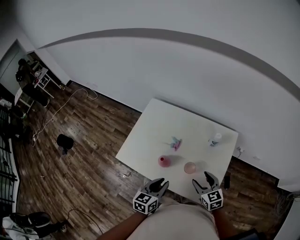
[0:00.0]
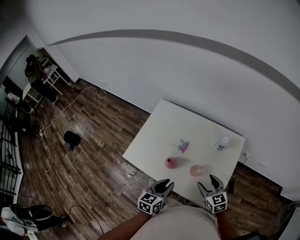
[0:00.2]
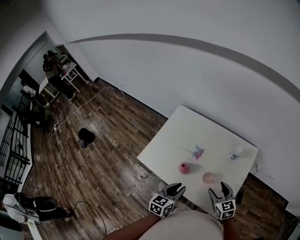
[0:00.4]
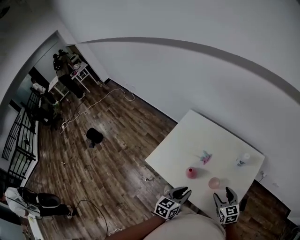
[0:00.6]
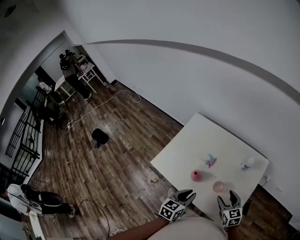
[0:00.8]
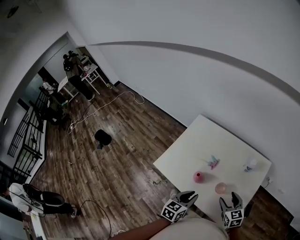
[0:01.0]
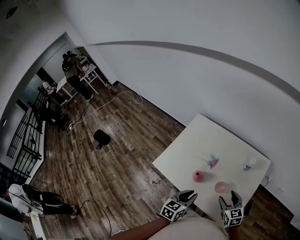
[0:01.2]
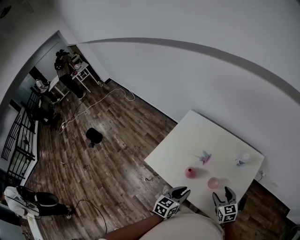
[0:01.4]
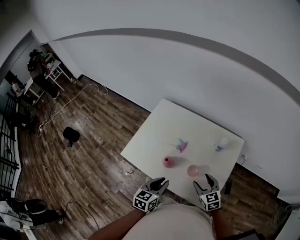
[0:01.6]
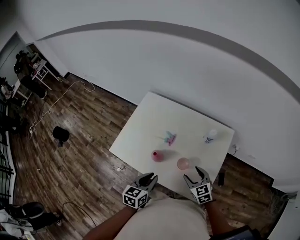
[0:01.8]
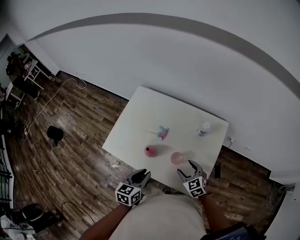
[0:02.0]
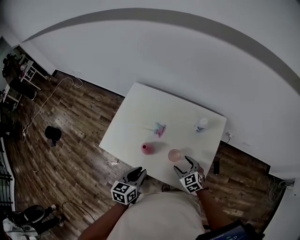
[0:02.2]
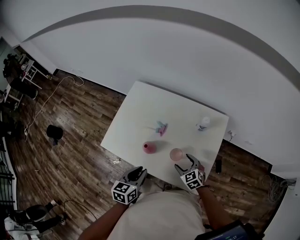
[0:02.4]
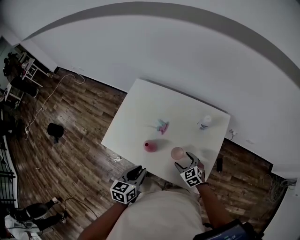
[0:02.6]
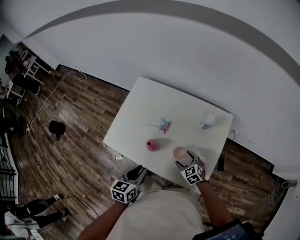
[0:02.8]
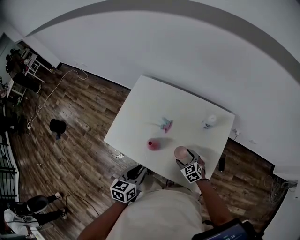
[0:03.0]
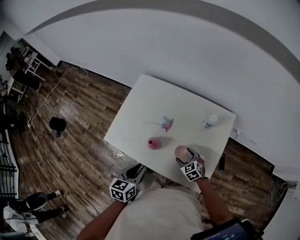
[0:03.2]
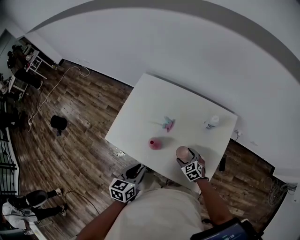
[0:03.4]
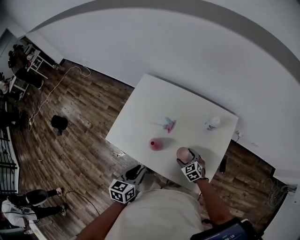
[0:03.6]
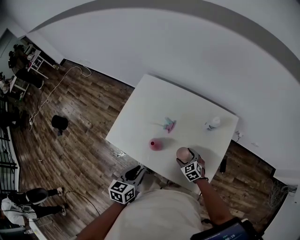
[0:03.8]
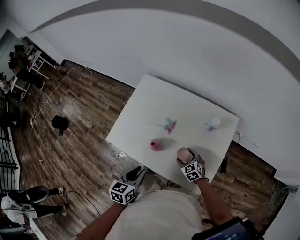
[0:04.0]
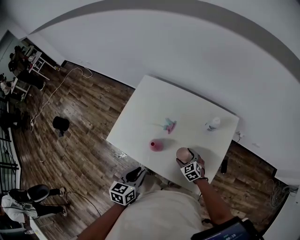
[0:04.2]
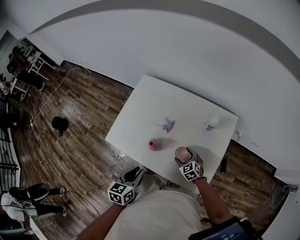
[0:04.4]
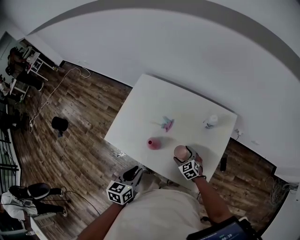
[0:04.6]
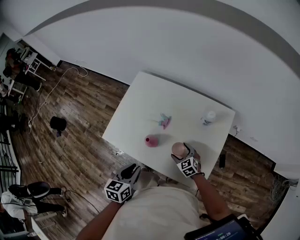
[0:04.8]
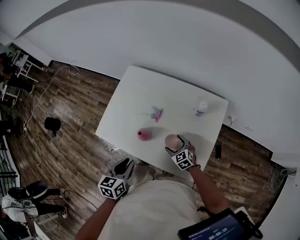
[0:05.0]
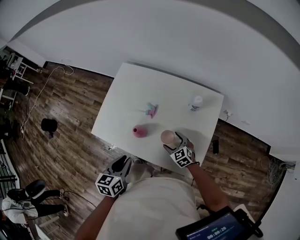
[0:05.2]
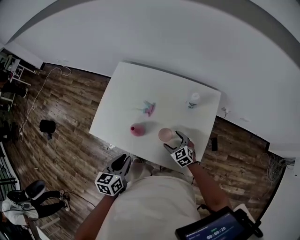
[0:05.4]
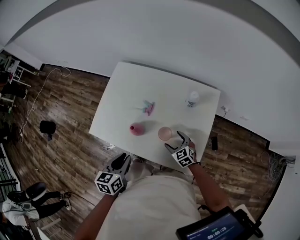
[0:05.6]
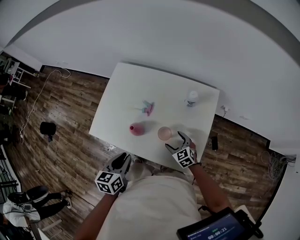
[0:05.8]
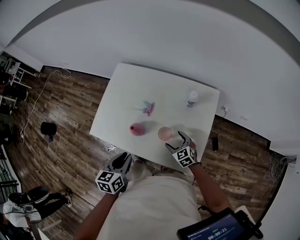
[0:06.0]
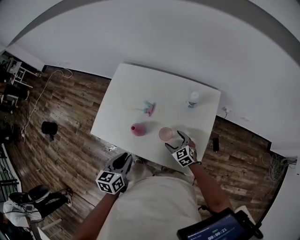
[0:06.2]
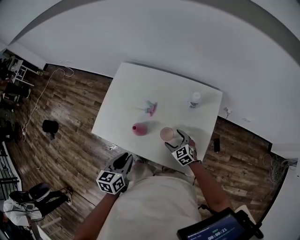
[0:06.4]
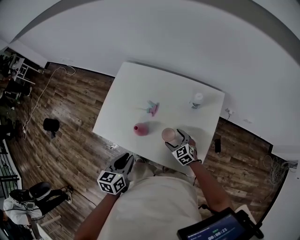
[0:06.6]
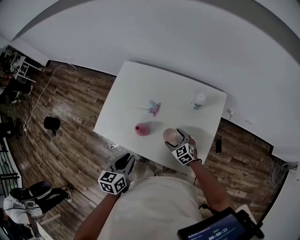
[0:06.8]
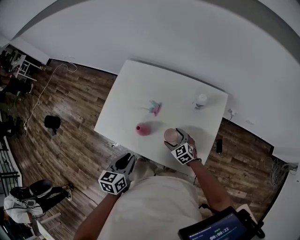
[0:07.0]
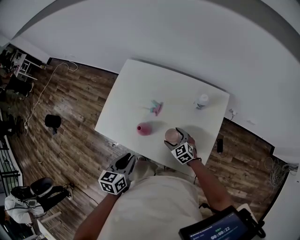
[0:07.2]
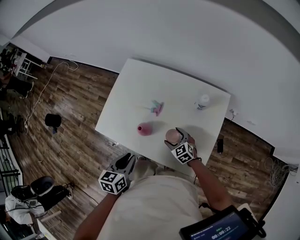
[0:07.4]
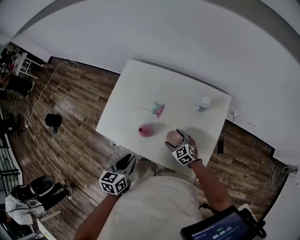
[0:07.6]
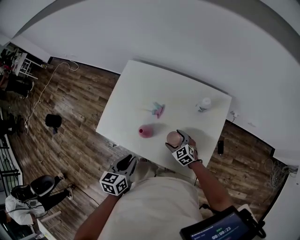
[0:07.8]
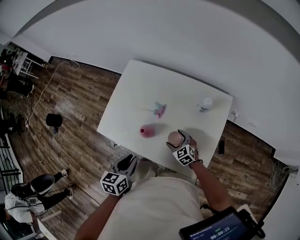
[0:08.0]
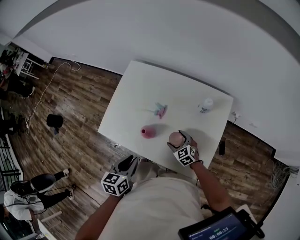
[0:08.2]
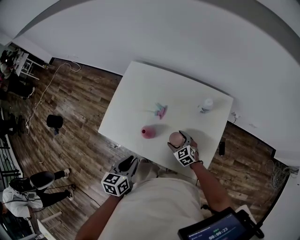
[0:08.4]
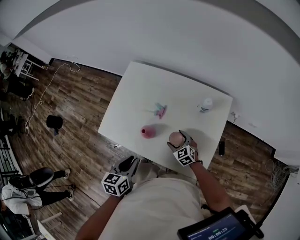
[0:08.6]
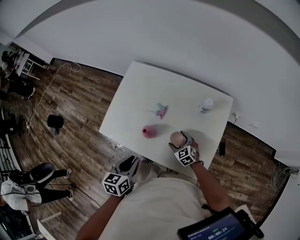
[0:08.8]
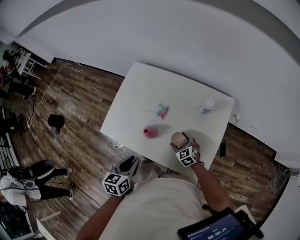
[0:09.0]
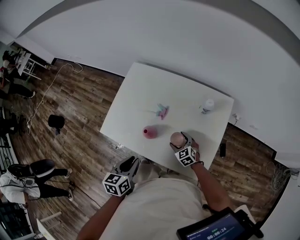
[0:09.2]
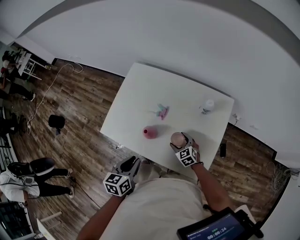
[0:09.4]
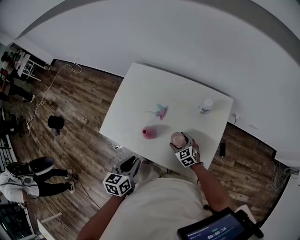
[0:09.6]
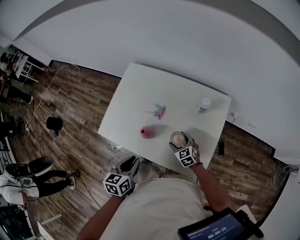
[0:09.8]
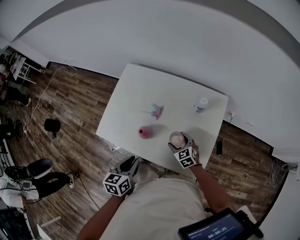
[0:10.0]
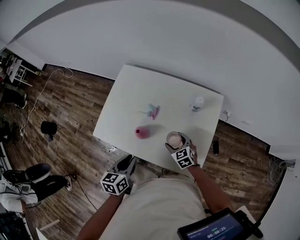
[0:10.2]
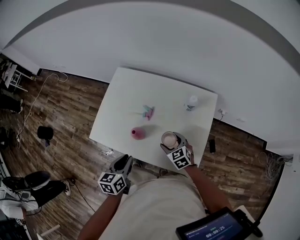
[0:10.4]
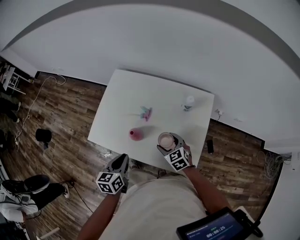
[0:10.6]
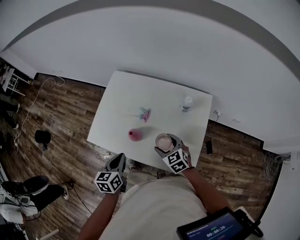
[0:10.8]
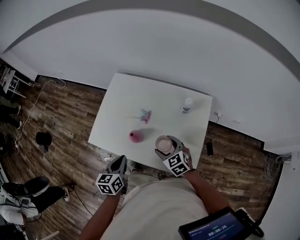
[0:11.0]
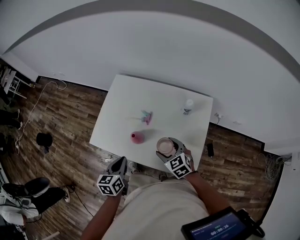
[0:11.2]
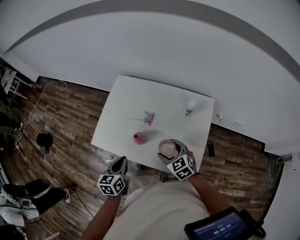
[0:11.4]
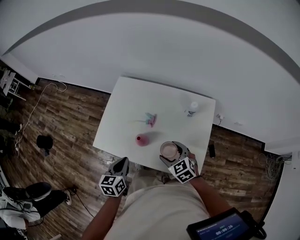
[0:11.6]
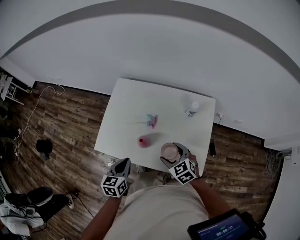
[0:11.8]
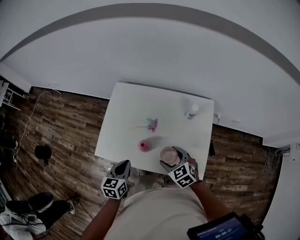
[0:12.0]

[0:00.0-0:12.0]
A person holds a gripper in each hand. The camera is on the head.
0:00.0 to 0:01.6: The grippers make only small movements.
0:01.6 to 0:03.0: The right gripper goes roughly 15 cm downward.
0:03.0 to 0:04.4: The grippers stay close to where they were, moving slightly.
0:04.4 to 0:06.0: The right gripper ends up about 5 cm from where it was.
0:06.0 to 0:07.6: The right gripper goes some 5 cm to the left.
0:07.6 to 0:09.0: The grippers move only a little.
0:09.0 to 0:10.4: The right gripper moves upward, about 10 cm.
0:10.4 to 0:12.0: The left gripper travels forward and to the left by some 10 cm, while the right gripper travels upward and to the left by some 10 cm.

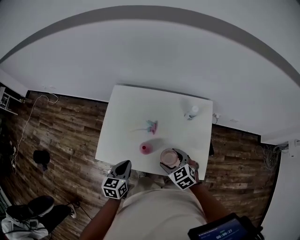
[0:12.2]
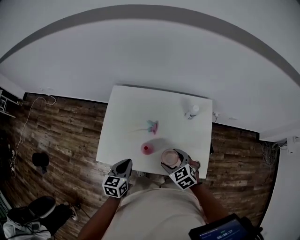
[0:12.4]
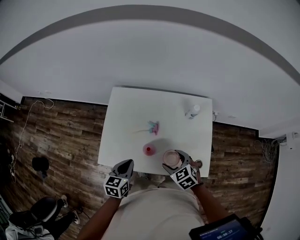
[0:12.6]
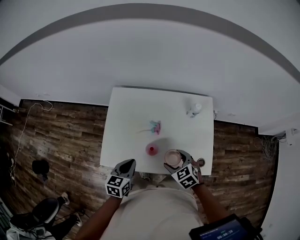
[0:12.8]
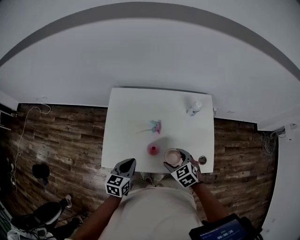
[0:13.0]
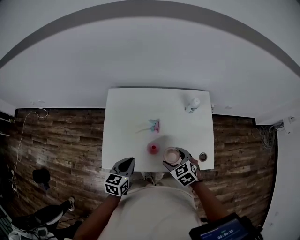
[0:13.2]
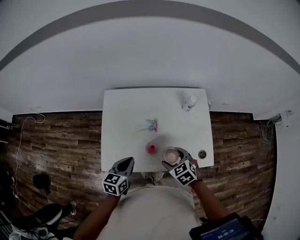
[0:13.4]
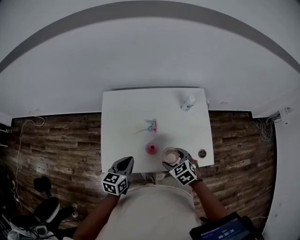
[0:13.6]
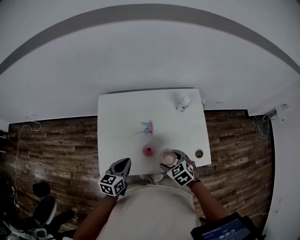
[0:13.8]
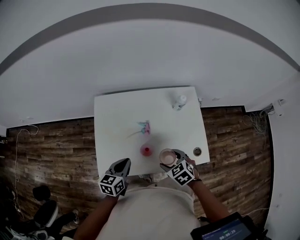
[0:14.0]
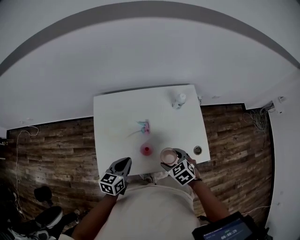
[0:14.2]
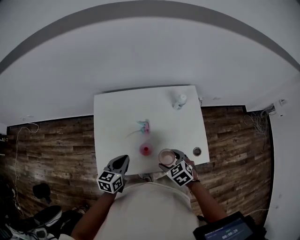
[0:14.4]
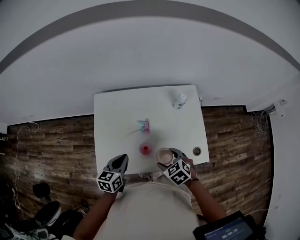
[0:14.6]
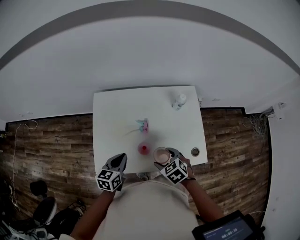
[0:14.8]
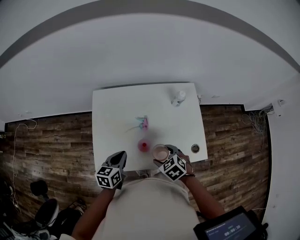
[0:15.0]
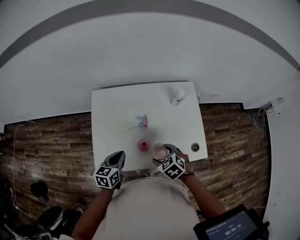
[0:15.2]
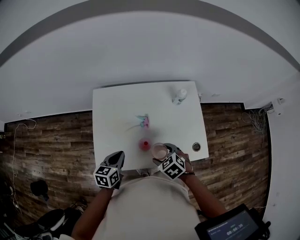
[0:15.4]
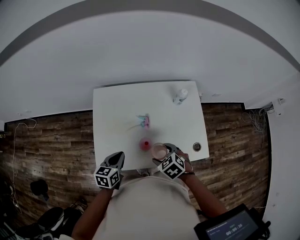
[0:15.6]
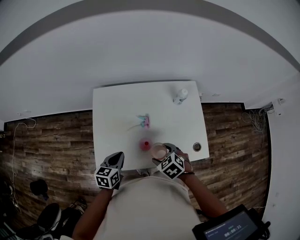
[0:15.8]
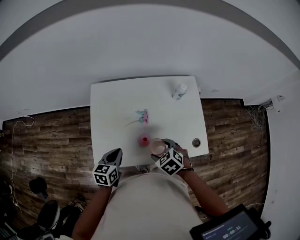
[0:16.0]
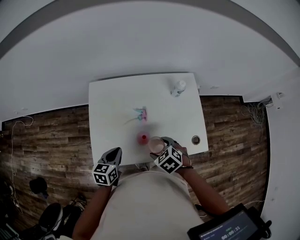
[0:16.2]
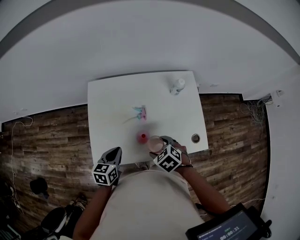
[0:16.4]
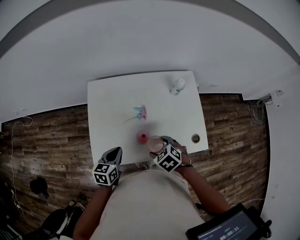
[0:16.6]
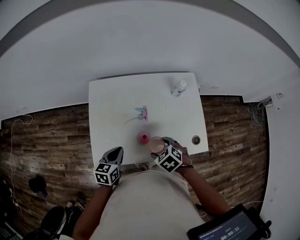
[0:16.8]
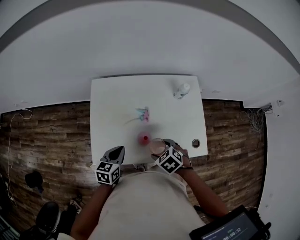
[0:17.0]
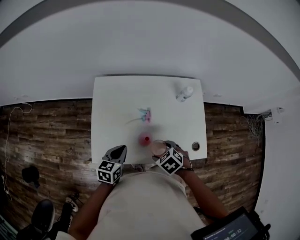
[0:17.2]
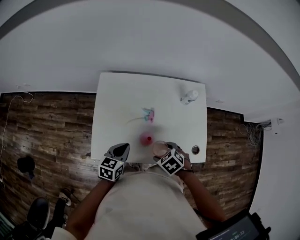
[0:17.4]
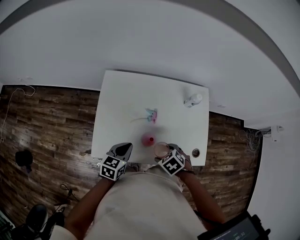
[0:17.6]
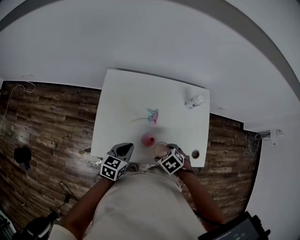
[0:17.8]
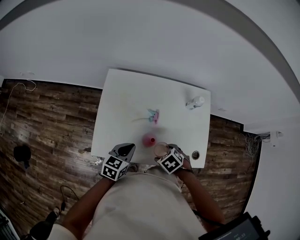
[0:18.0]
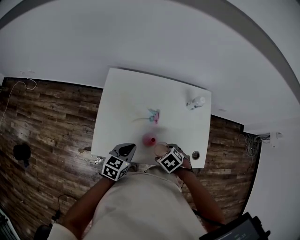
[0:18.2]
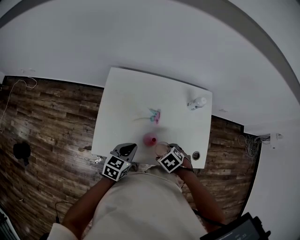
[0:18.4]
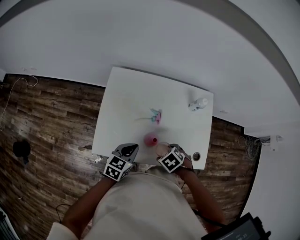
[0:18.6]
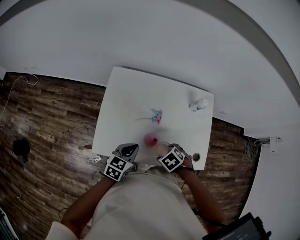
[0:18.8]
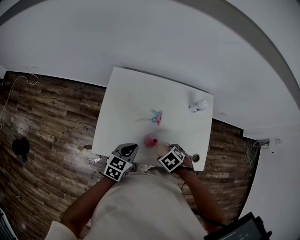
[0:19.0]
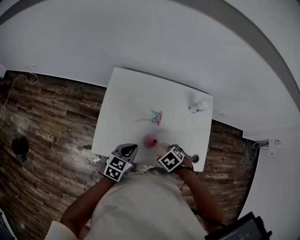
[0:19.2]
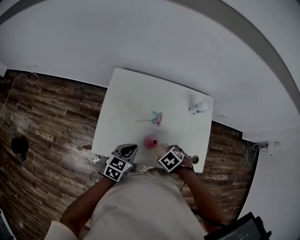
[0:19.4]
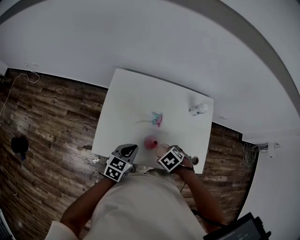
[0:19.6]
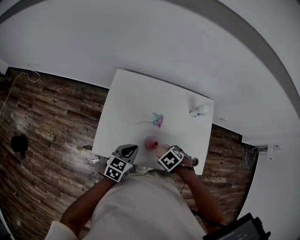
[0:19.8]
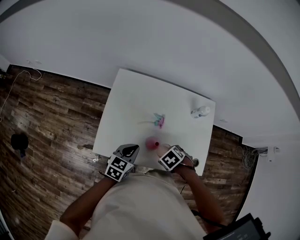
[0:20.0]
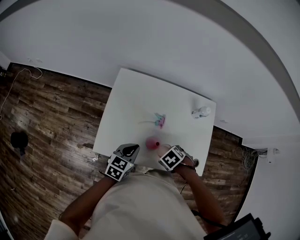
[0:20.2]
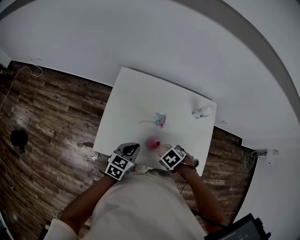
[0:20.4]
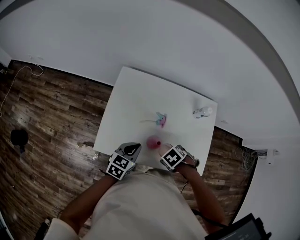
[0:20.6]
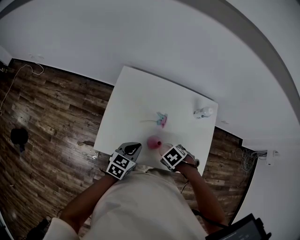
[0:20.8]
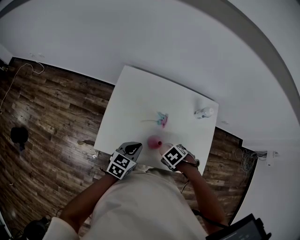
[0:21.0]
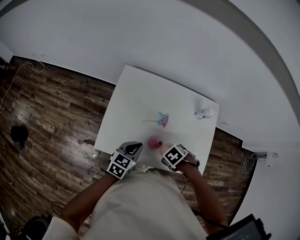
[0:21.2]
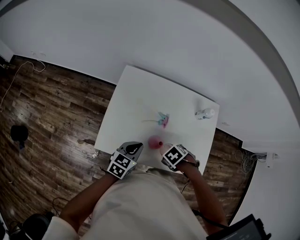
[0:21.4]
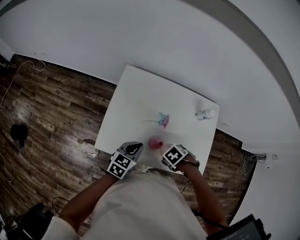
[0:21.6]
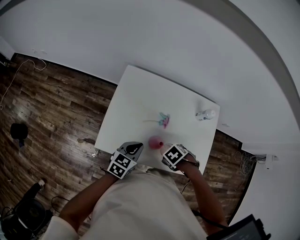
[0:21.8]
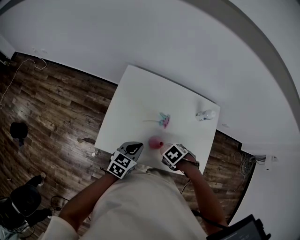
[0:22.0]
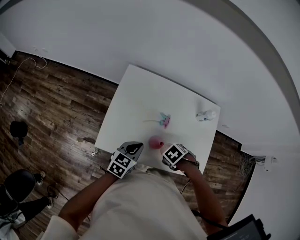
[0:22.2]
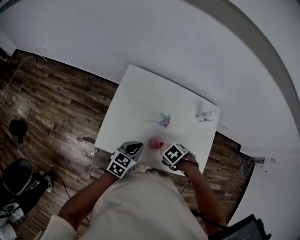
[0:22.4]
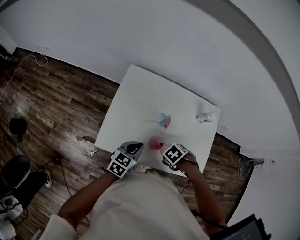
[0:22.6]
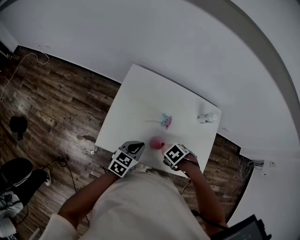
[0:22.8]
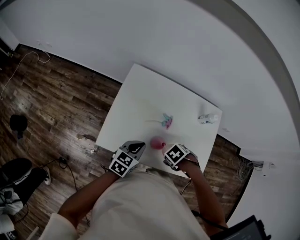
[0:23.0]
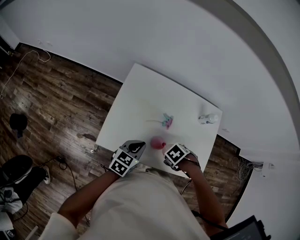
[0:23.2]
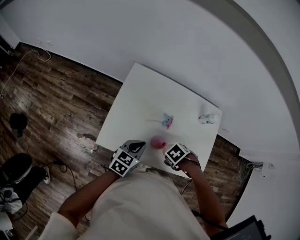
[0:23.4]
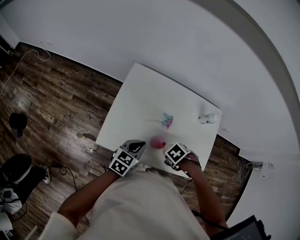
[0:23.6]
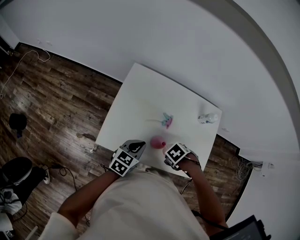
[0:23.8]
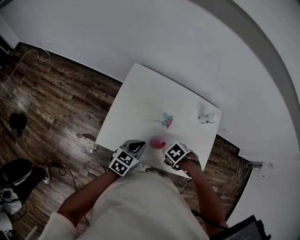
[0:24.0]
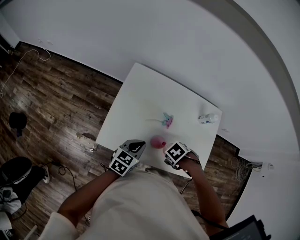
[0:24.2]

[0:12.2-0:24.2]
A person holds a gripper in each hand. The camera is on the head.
0:12.2 to 0:13.8: The left gripper shifts some 5 cm forward, and turns by some 20 degrees; the right gripper changes place by roughly 5 cm.
0:13.8 to 0:16.6: The grippers make only small movements.
0:16.6 to 0:18.2: There are only small adjustments of the grippers.
0:18.2 to 0:21.2: The grippers make only small movements.
0:21.2 to 0:22.6: There are only small adjustments of the grippers.
0:22.6 to 0:24.2: Both grippers stay put.
